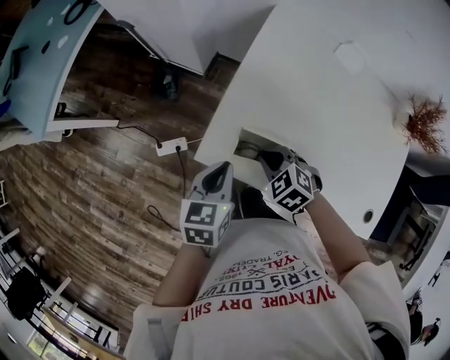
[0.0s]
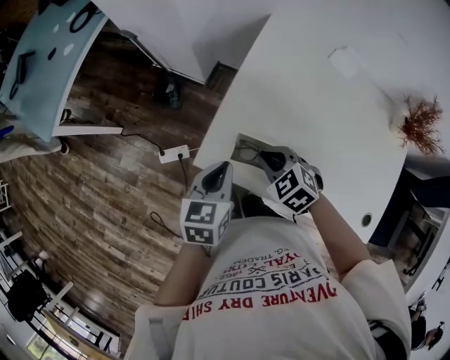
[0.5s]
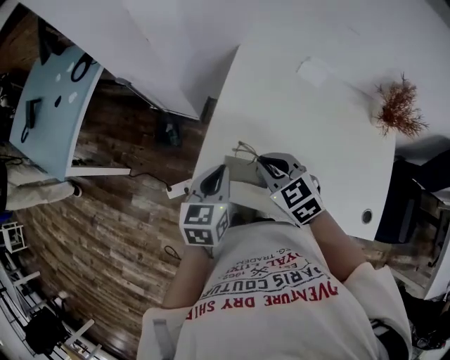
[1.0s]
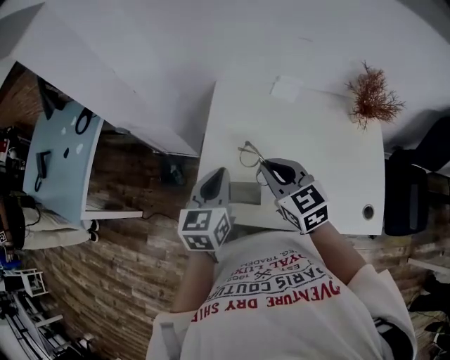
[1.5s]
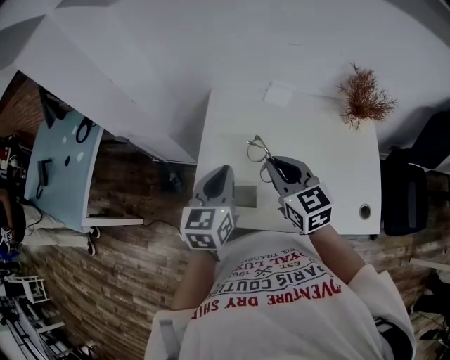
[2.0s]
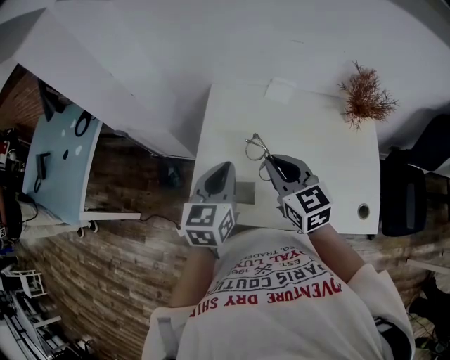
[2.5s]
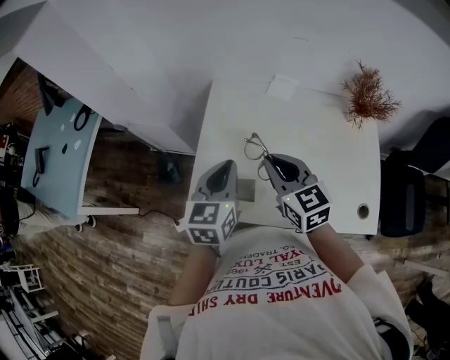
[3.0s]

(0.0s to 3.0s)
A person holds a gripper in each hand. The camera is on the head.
0.0s - 1.5s: The right gripper is displaced upward and to the right by some 25 cm, and points its fingers approximately 40 degrees further upward. Meanwhile the left gripper moves upward, to the right and forward, about 20 cm, and turns by some 20 degrees.
1.5s - 3.0s: The grippers move only a little.

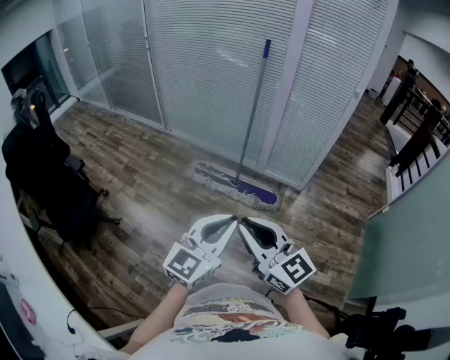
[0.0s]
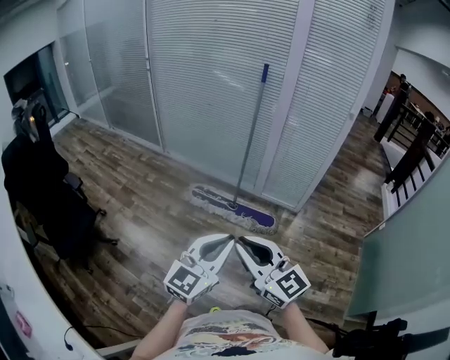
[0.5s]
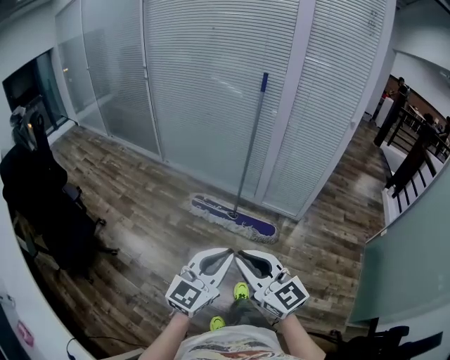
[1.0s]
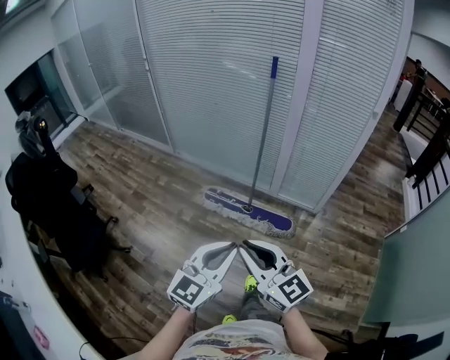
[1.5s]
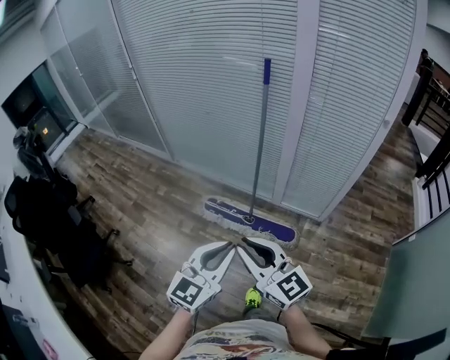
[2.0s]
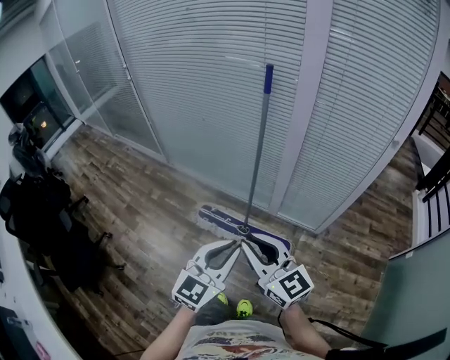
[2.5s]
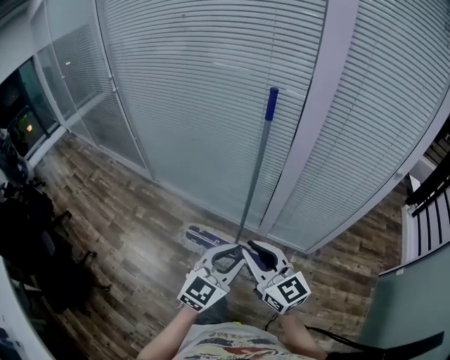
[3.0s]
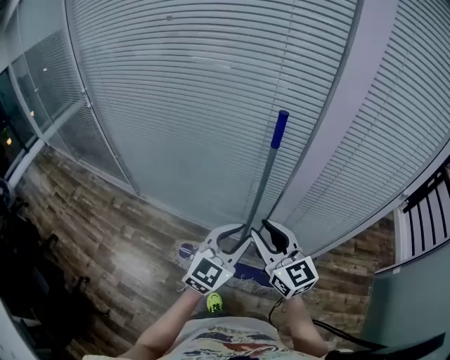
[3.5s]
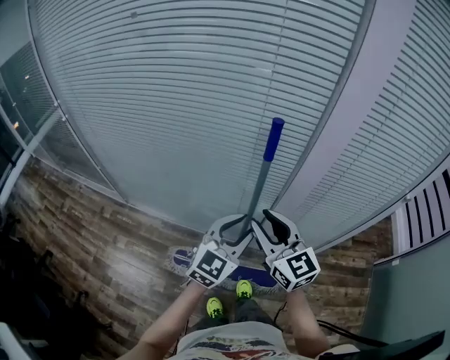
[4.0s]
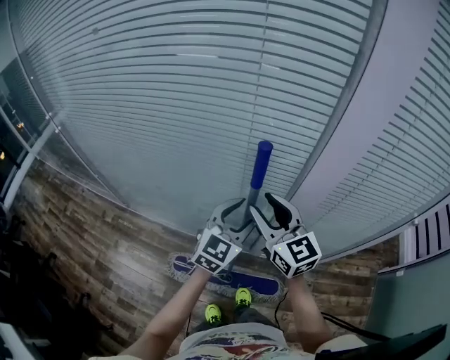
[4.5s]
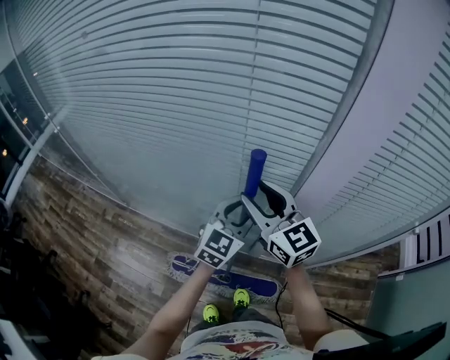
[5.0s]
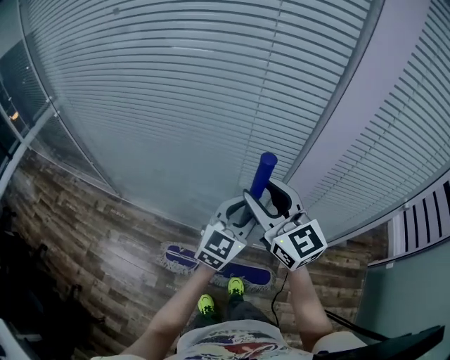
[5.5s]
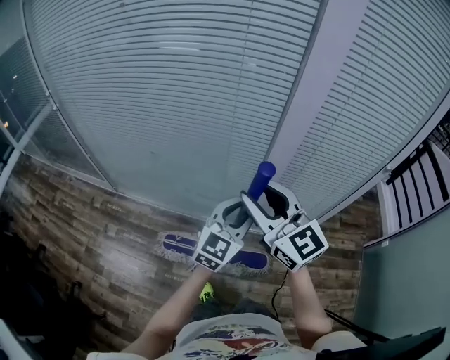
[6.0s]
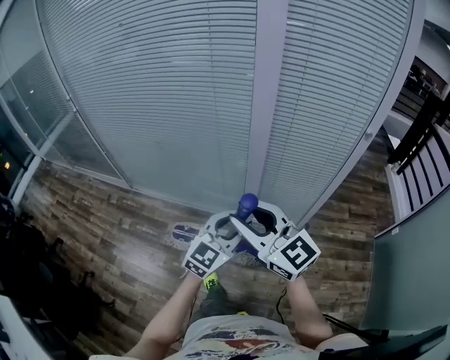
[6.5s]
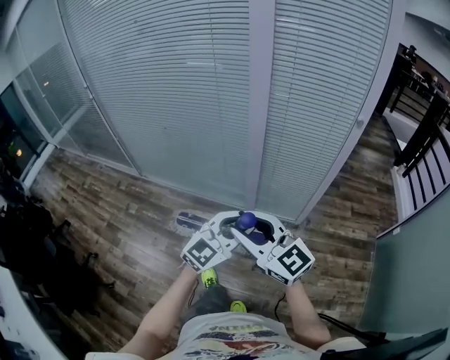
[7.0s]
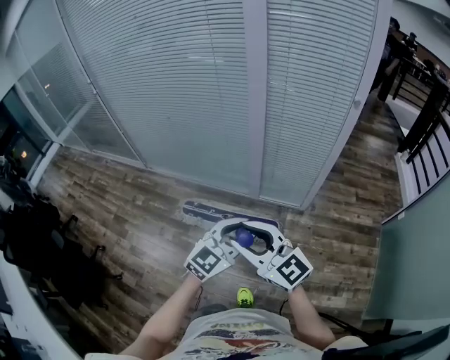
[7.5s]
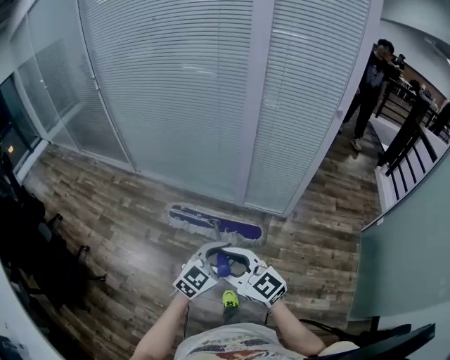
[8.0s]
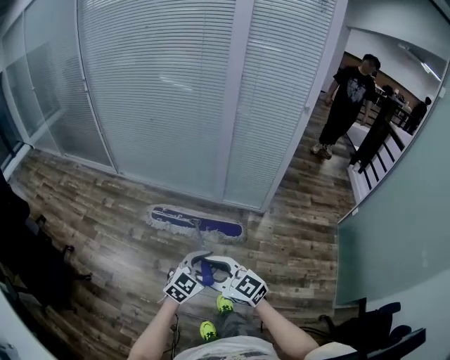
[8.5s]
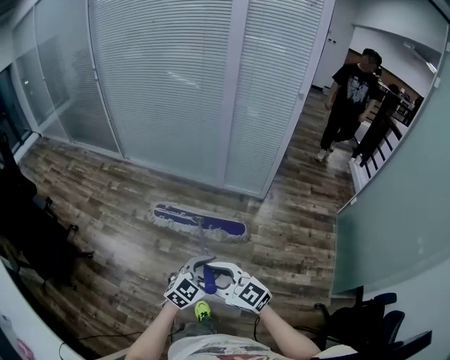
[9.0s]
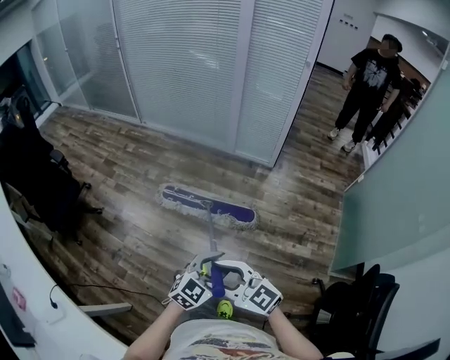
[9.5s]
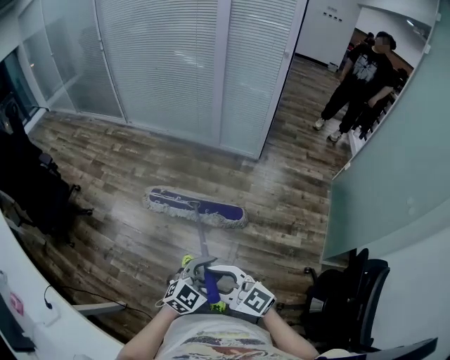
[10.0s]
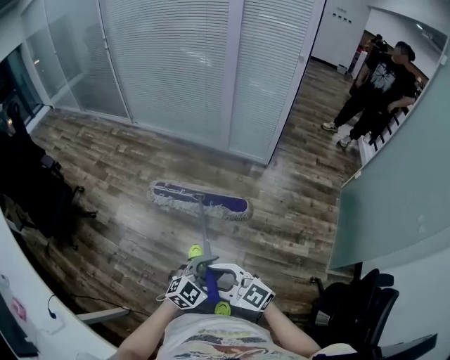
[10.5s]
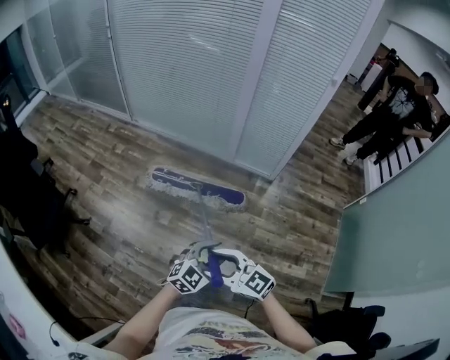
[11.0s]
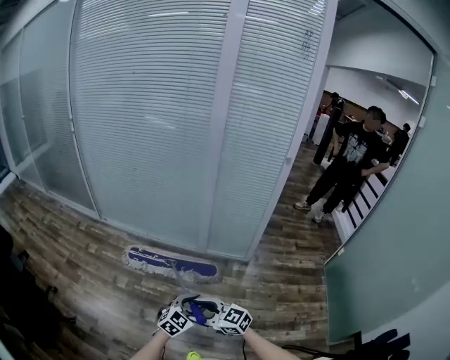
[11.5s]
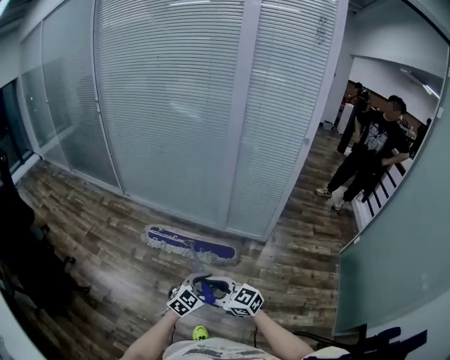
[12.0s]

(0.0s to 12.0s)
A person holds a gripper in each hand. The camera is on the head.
0.0s - 2.0s: Both grippers move forward, about 35 cm.
2.0s - 4.0s: The pair of grippers is taken forward, some 60 cm. The left gripper opens its fingers. The right gripper rotates roughly 30 degrees.
4.0s - 6.0s: The left gripper is displaced to the right by approximately 5 cm, and goes forward and returns, approximately 20 cm each way, while the right gripper moves upward, approximately 10 cm, and moves approximately 20 cm forward and comes back.
6.0s - 8.0s: The pair of grippers is taken backward, some 60 cm. The right gripper turns by some 20 degrees.
8.0s - 10.0s: The pair of grippers is taken backward, about 70 cm.
10.0s - 12.0s: The two grippers travel together, forward, approximately 50 cm.

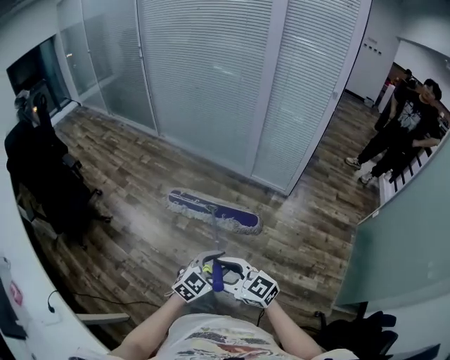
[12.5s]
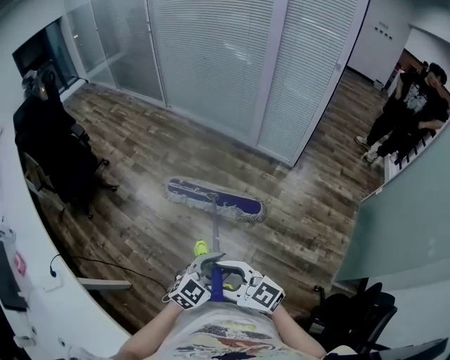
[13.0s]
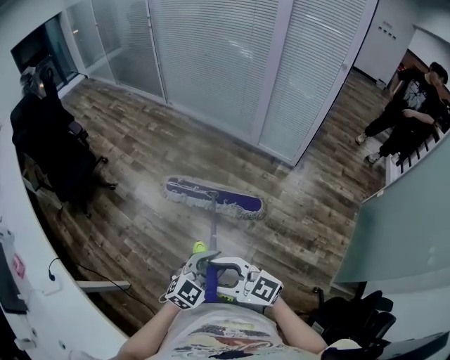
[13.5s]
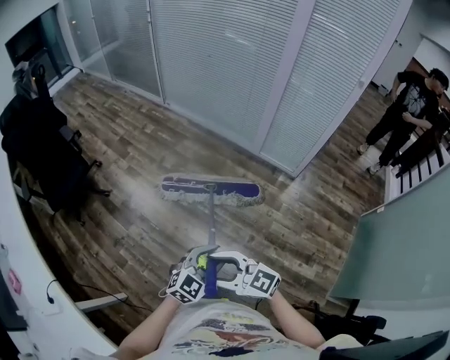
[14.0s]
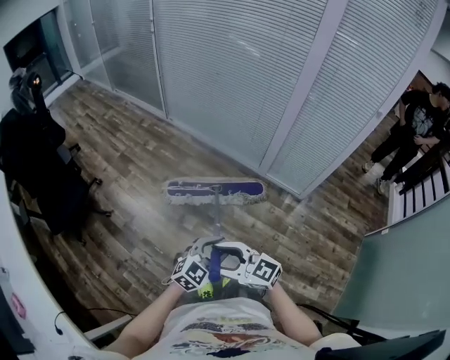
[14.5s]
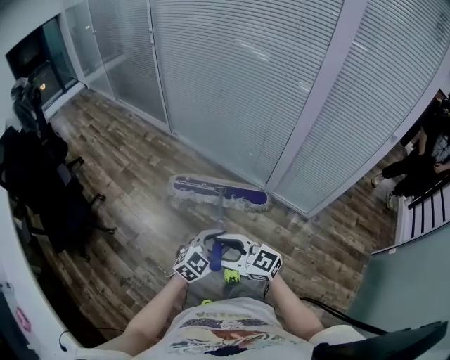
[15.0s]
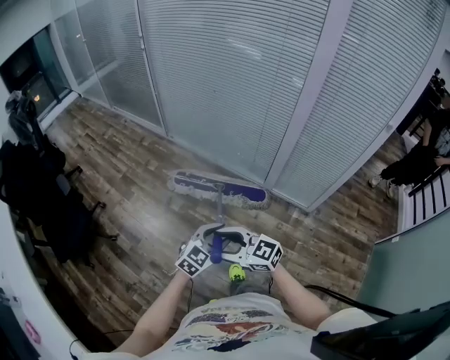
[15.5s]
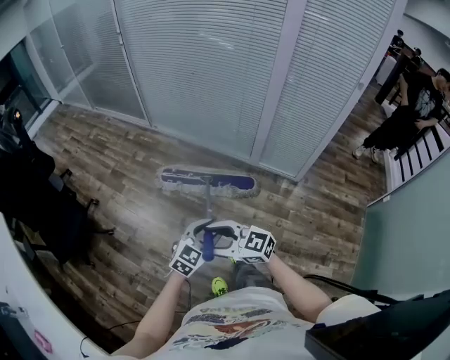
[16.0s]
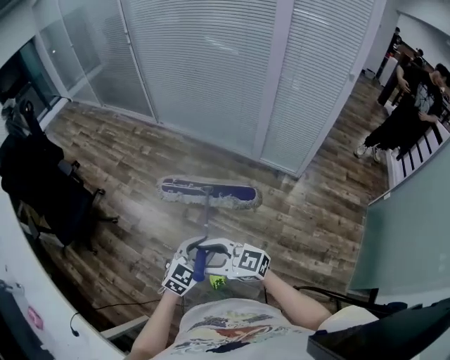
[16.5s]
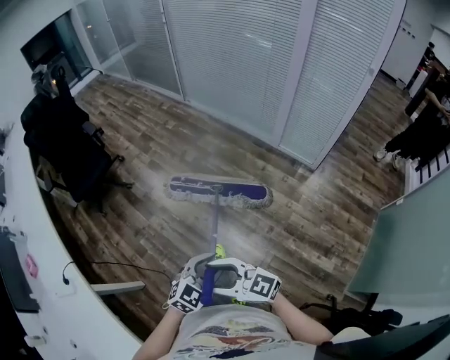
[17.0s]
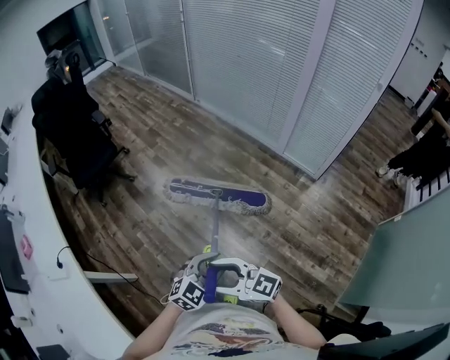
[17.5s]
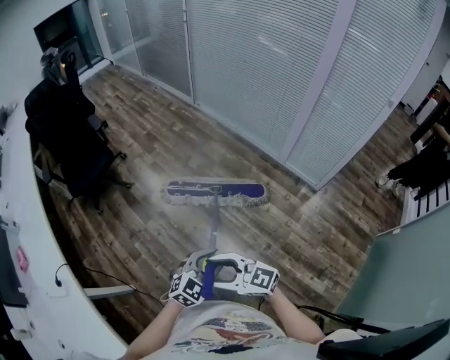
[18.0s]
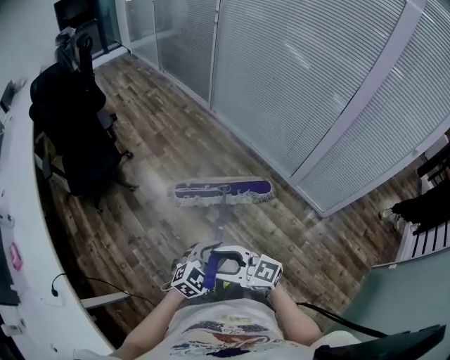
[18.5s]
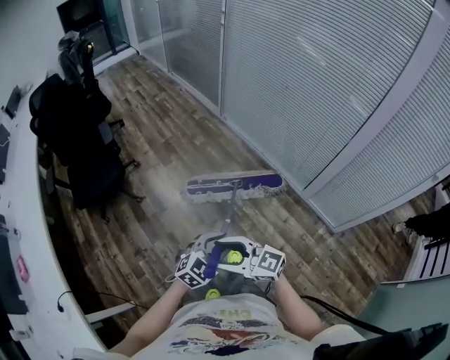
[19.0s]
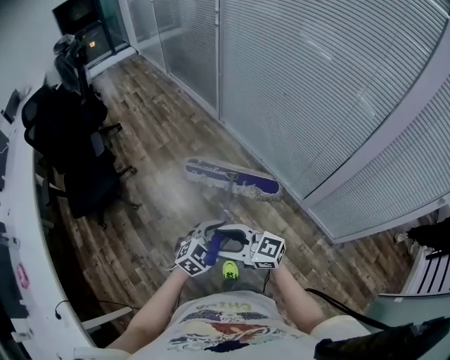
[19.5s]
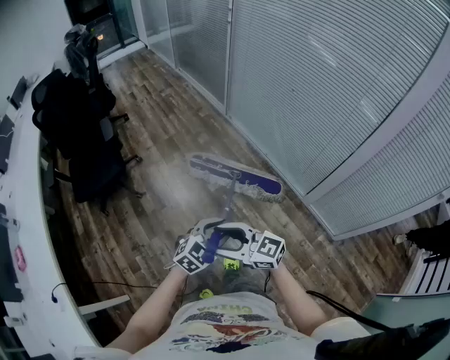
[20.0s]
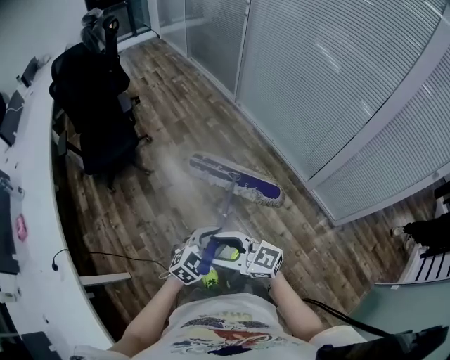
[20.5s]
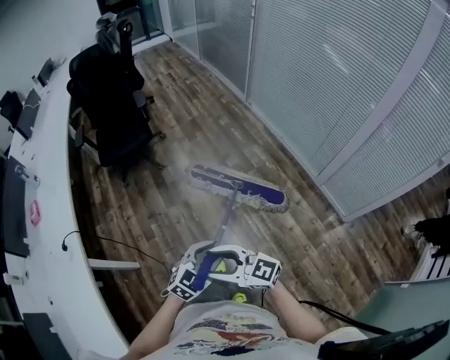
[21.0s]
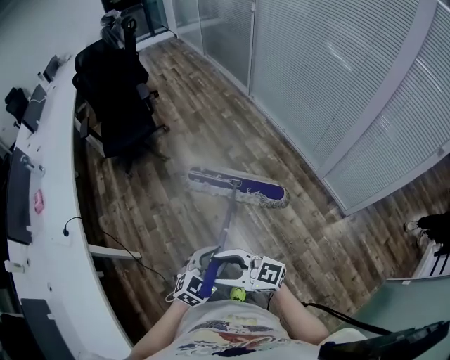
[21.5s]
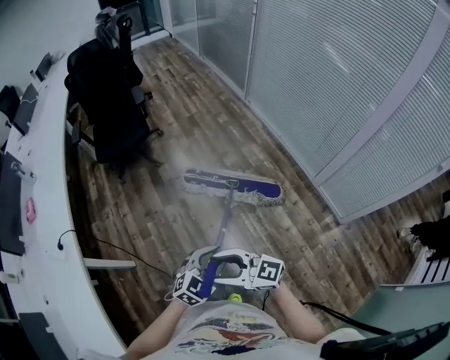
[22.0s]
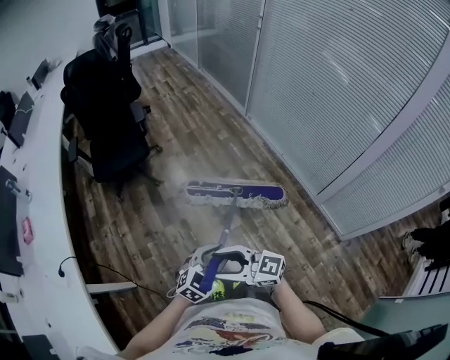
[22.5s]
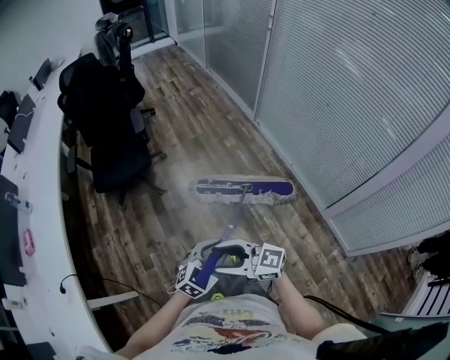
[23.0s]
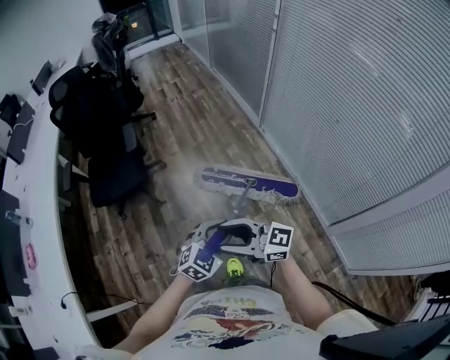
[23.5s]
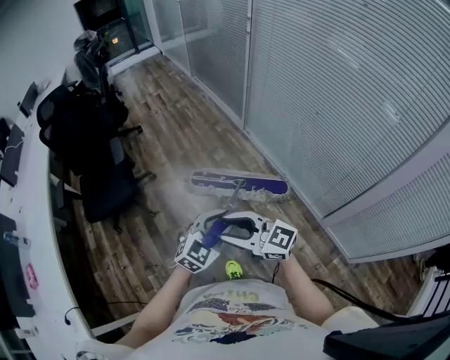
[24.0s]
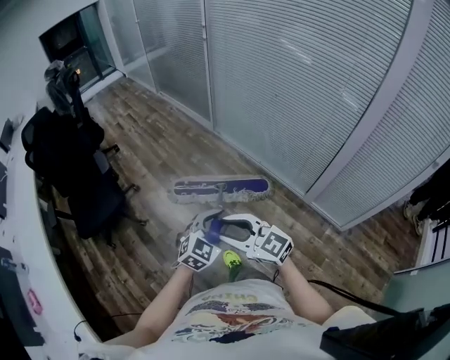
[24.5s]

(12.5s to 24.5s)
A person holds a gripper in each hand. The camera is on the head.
12.5s - 14.5s: The grippers both shift forward by about 30 cm.
14.5s - 16.5s: The right gripper heads backward, covering approximately 10 cm. The left gripper goes about 15 cm backward and to the left.
16.5s - 18.5s: The grippers both shift to the left by some 5 cm. The right gripper moves approximately 25 cm backward and comes back, while the left gripper travels backward and back again, about 25 cm each way.
18.5s - 20.5s: The left gripper goes forward and returns, some 30 cm each way, while the right gripper goes forward and returns, about 30 cm each way.
22.5s - 24.5s: The grippers both shift forward and to the right by some 30 cm. The right gripper turns by about 30 degrees.
